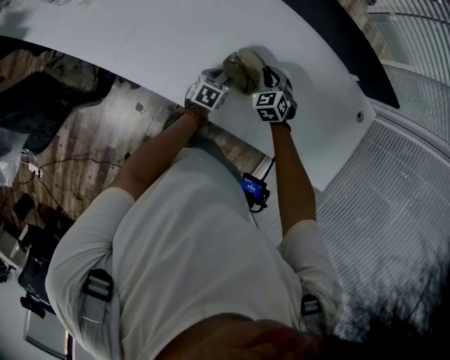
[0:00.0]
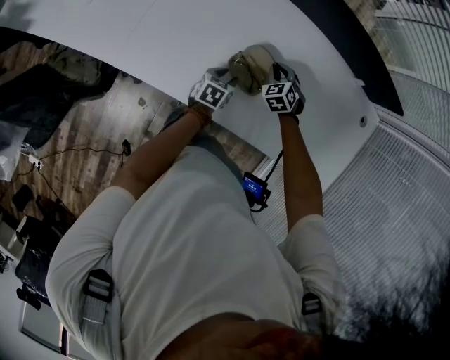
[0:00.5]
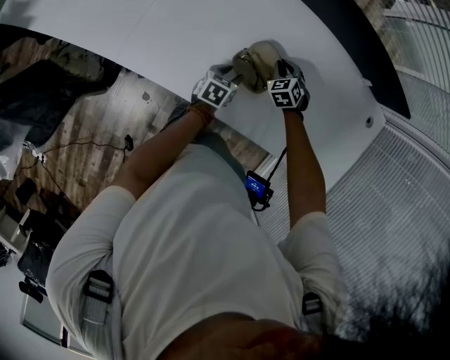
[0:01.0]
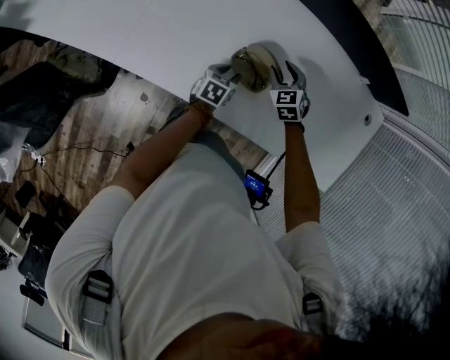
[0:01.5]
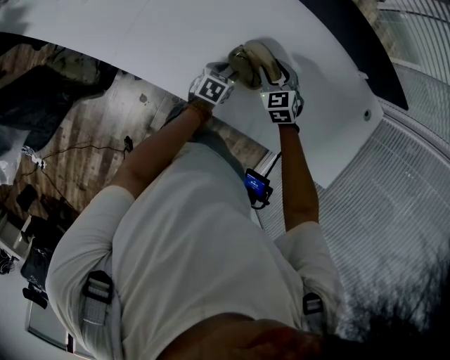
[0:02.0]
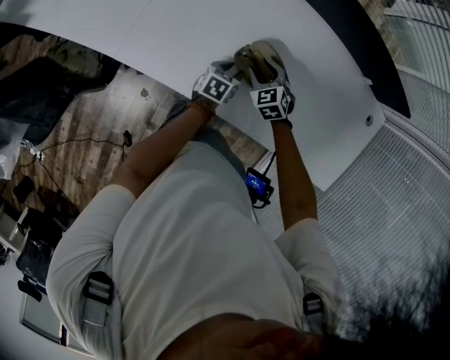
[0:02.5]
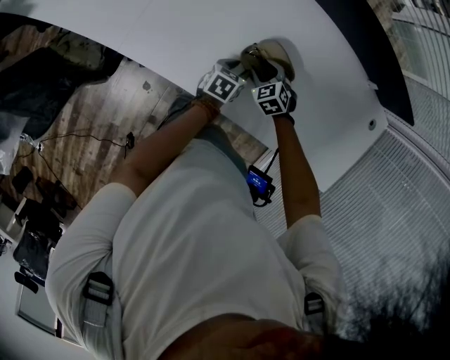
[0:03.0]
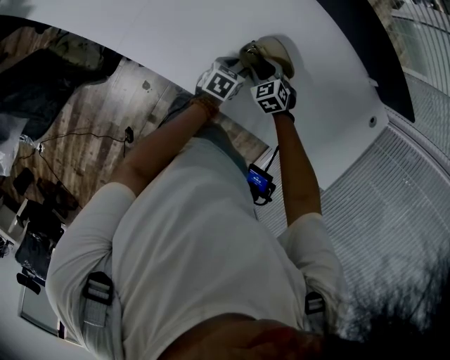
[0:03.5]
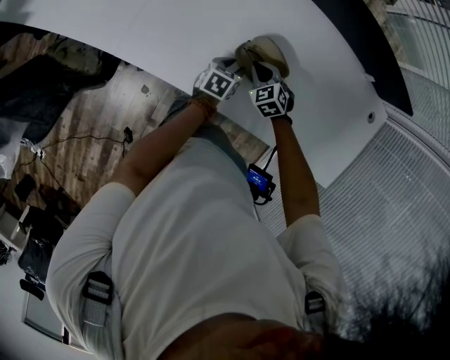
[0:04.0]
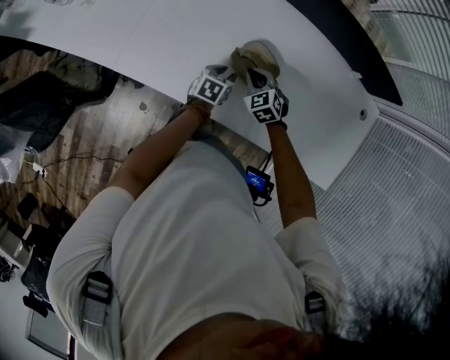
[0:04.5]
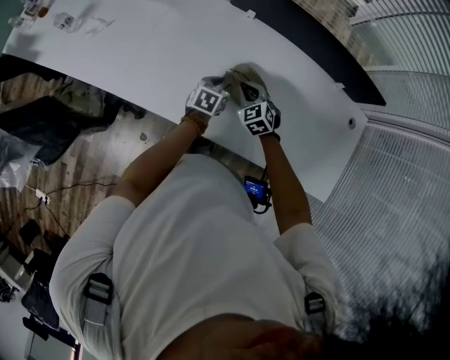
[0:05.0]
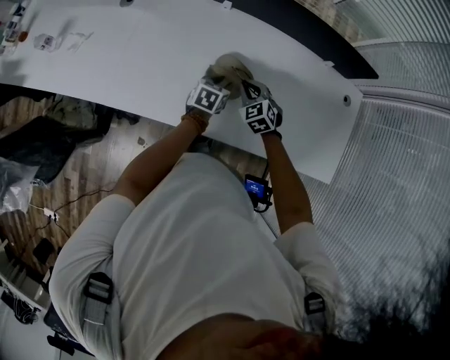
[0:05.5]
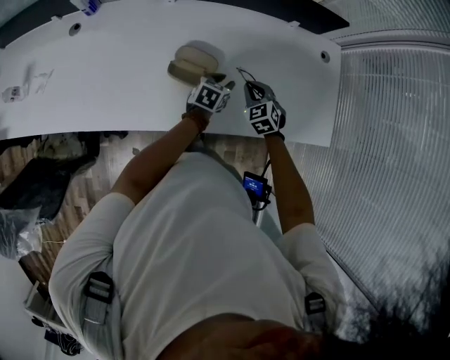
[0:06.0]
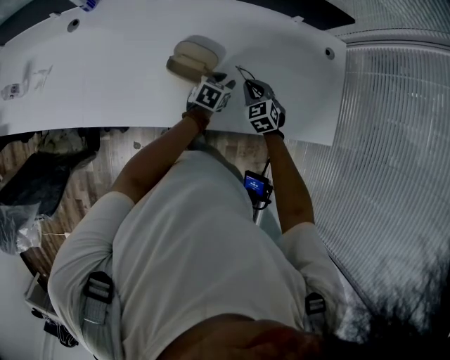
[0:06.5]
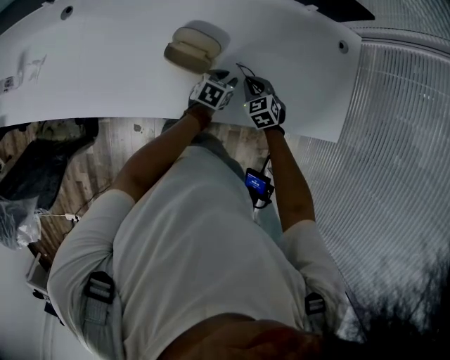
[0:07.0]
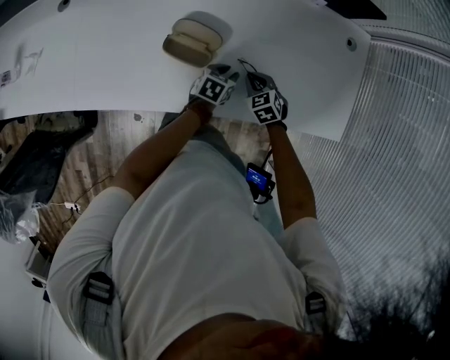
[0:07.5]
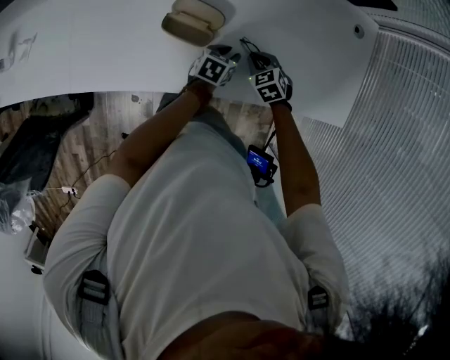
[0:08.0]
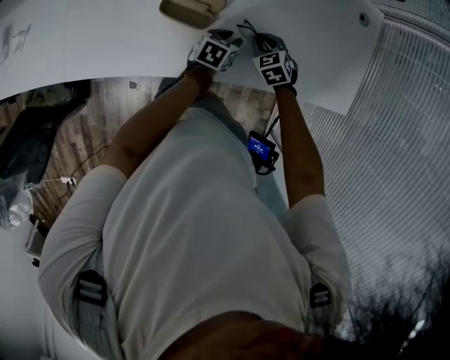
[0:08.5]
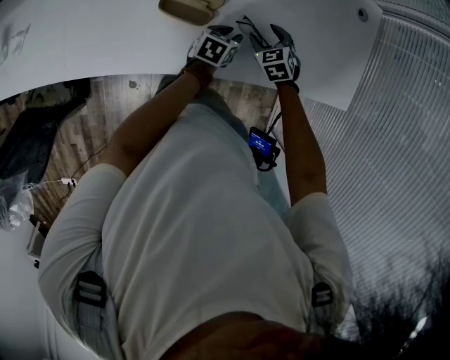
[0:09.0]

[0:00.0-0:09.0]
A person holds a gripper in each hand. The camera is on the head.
0:00.0 to 0:02.0: The right gripper opens up.
0:02.0 to 0:04.5: The right gripper travels downward and back again, approximately 10 cm each way, and closes up.
0:04.5 to 0:07.0: The right gripper changes place by some 20 cm, and changes its angle by about 30 degrees. The left gripper shifts by about 20 cm, and rotates approximately 20 degrees.
0:07.0 to 0:09.0: The right gripper opens its fingers.

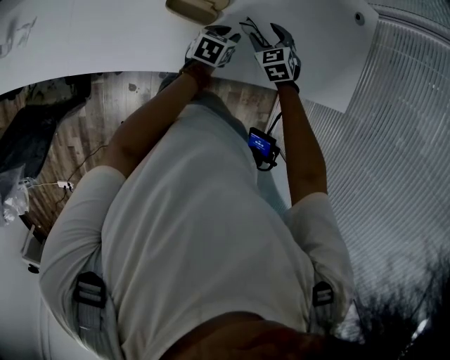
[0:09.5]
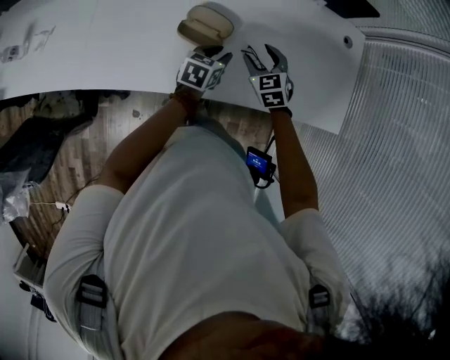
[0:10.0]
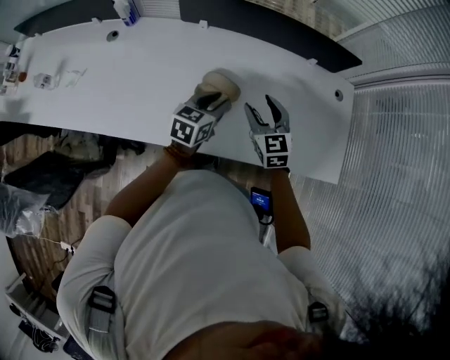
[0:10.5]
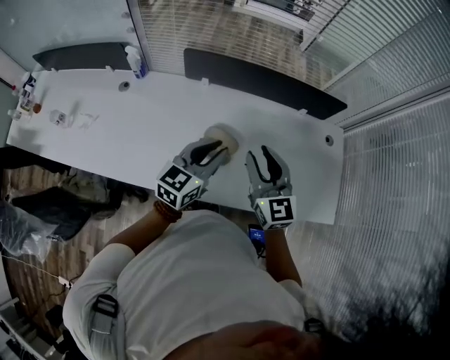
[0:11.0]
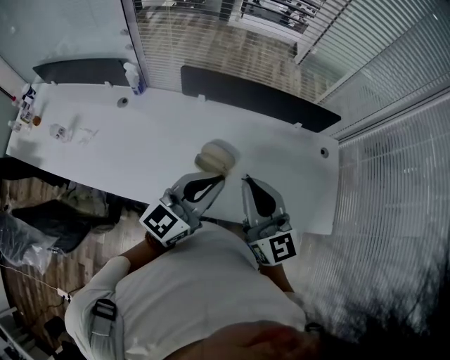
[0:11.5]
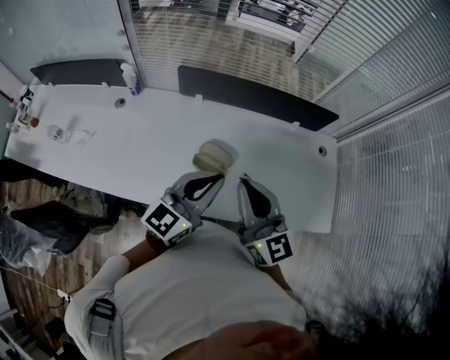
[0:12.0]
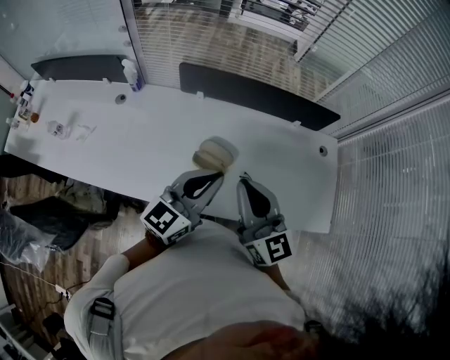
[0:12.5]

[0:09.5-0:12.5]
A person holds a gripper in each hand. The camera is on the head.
0:09.5 to 0:11.0: Both grippers travel together upward, approximately 35 cm. The left gripper points its fingers roughly 30 degrees further upward; the right gripper tips its fingers upward by some 50 degrees, and closes its fingers.
0:11.0 to 0:12.5: The right gripper heads upward and backward, covering about 10 cm, and closes up. The left gripper travels upward by about 10 cm.

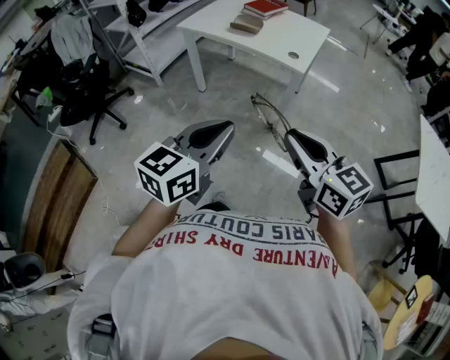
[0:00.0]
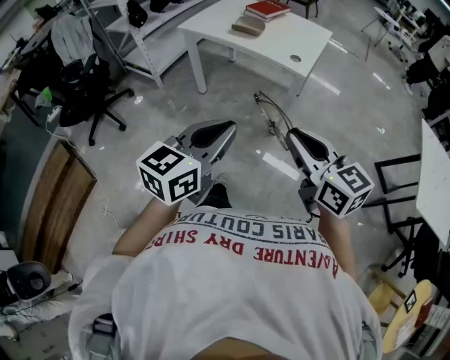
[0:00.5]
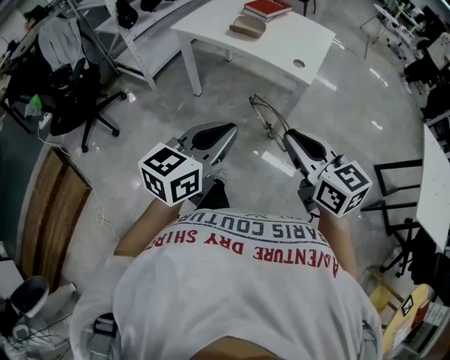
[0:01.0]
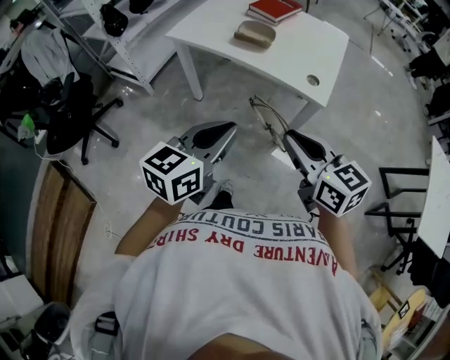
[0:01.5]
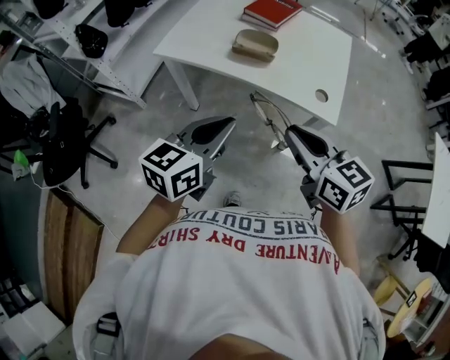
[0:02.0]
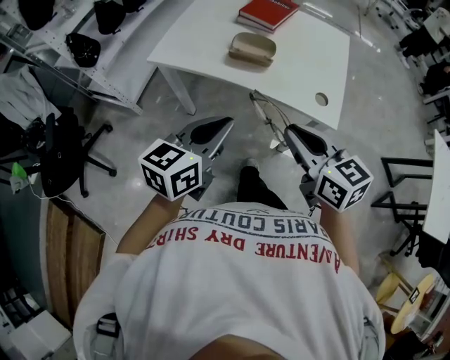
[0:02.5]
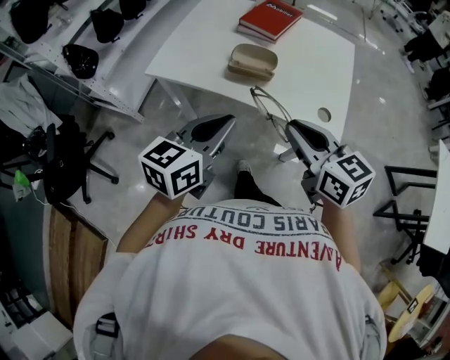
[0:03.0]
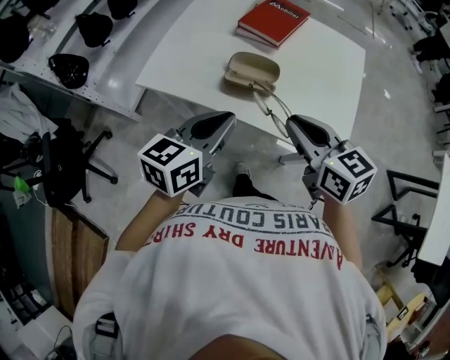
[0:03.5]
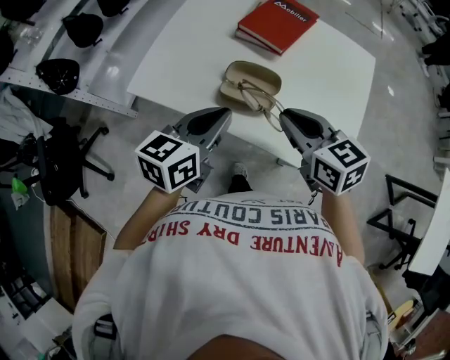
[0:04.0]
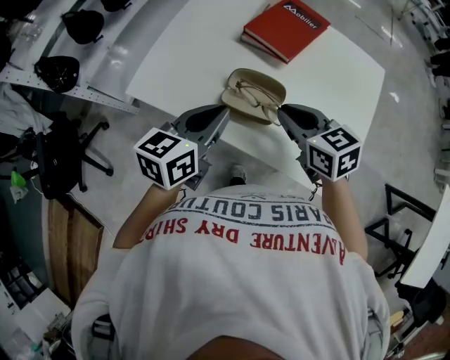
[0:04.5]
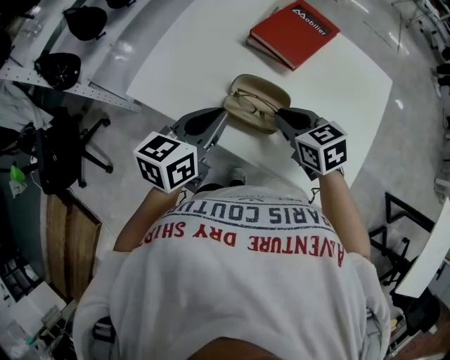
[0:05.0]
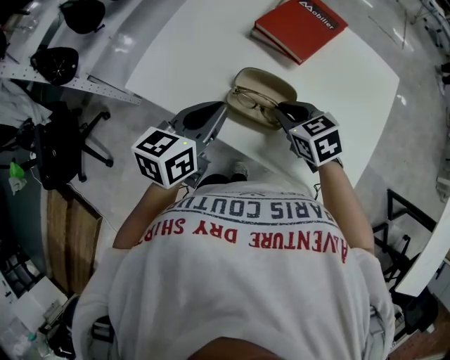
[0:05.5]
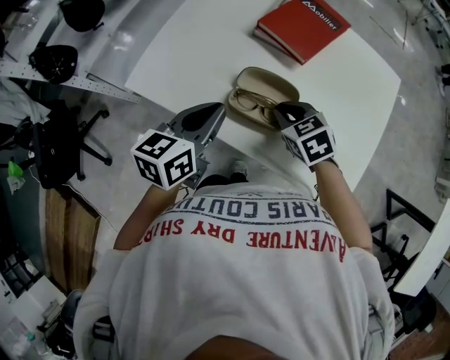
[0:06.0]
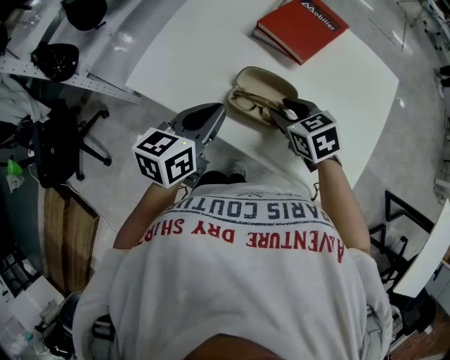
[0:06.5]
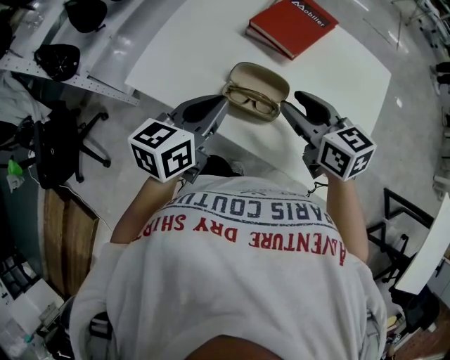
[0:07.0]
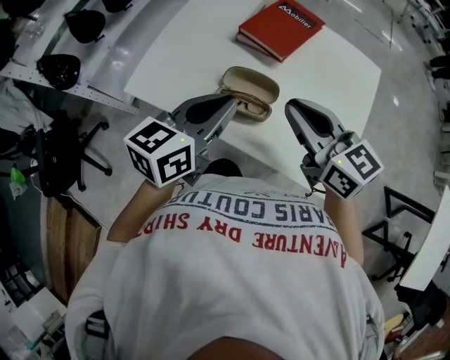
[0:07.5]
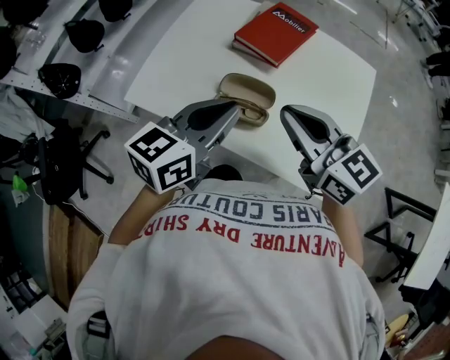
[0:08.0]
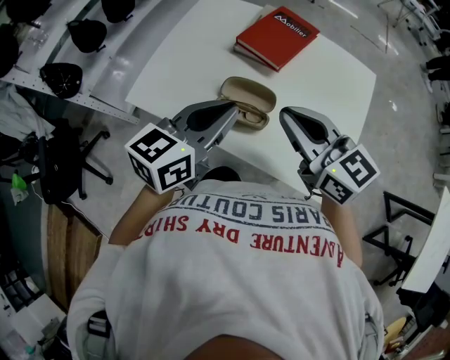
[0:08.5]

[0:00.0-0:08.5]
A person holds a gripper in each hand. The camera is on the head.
0:00.0 to 0:02.0: Both grippers travel together forward, approximately 40 cm.
0:02.0 to 0:04.0: The two grippers go approximately 30 cm forward.
0:04.0 to 0:06.5: The left gripper shifts some 10 cm downward and forward. The right gripper moves downward and forward, some 15 cm, rotates some 20 degrees, and opens up.
0:06.5 to 0:08.5: The left gripper shifts approximately 15 cm upward and to the right. Meanwhile the right gripper shifts approximately 20 cm upward, tilts its fingers roughly 40 degrees upward, and closes its fingers.

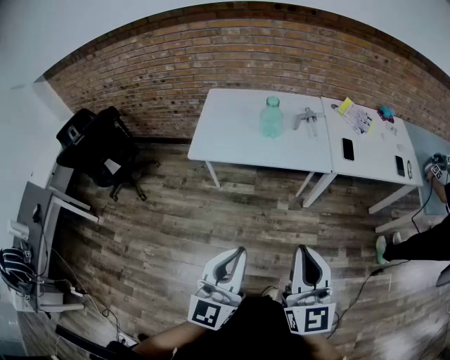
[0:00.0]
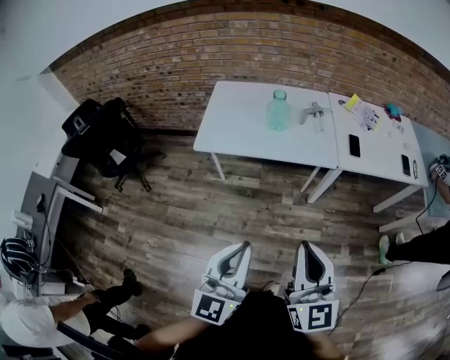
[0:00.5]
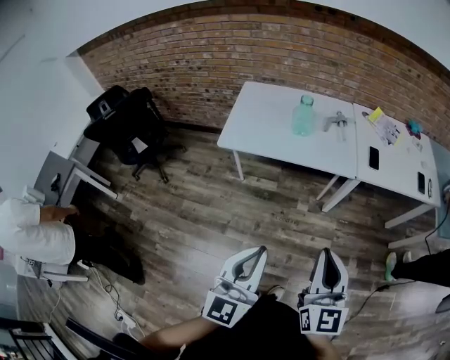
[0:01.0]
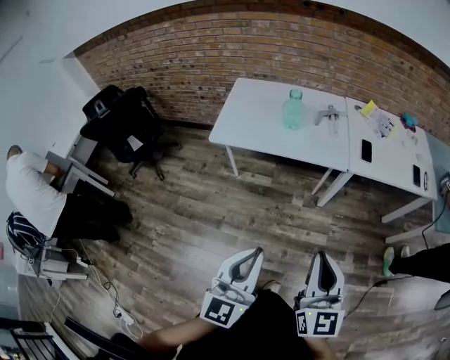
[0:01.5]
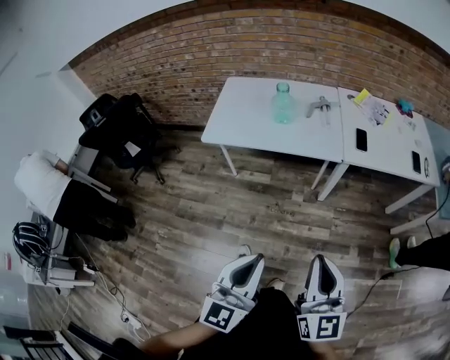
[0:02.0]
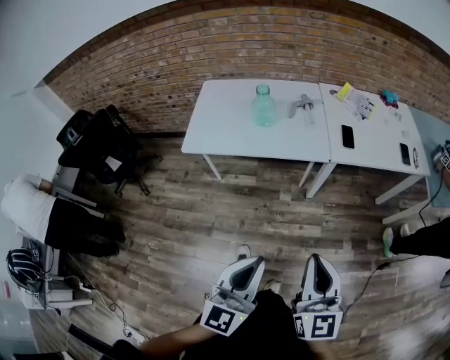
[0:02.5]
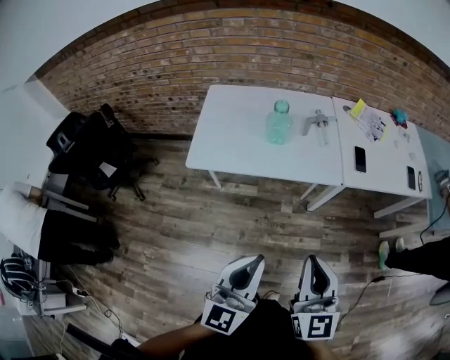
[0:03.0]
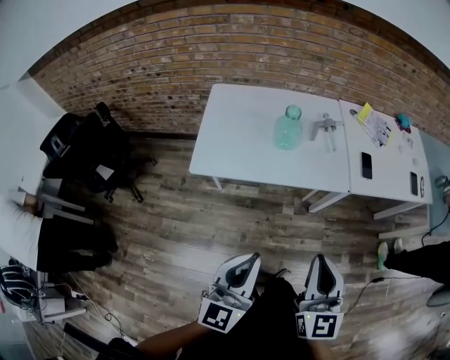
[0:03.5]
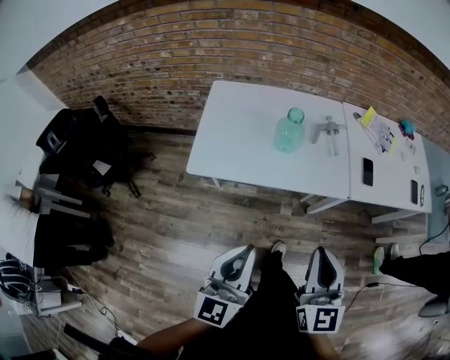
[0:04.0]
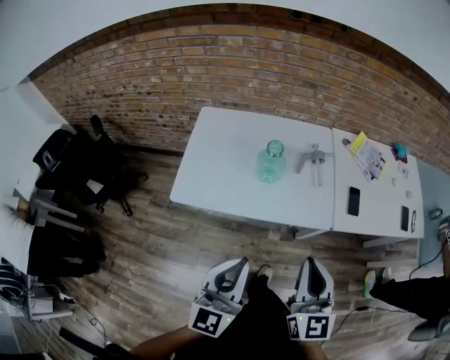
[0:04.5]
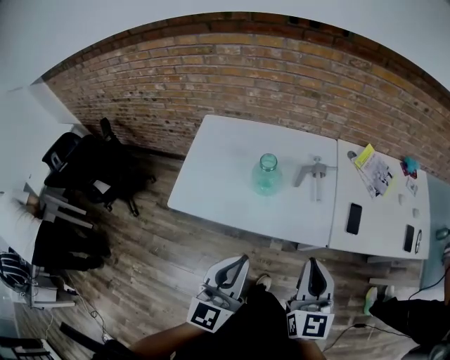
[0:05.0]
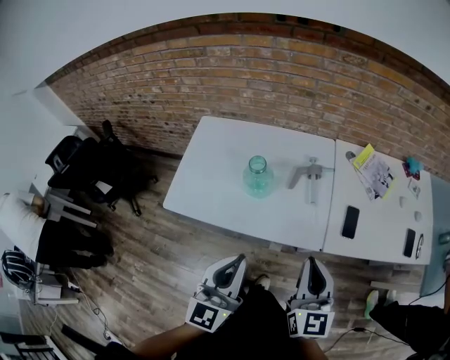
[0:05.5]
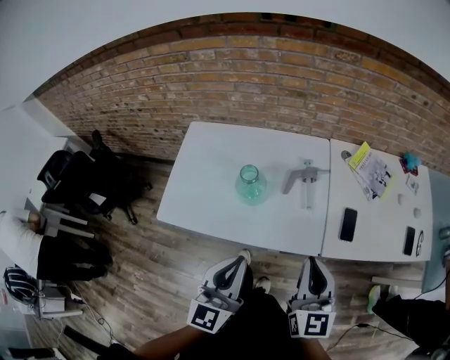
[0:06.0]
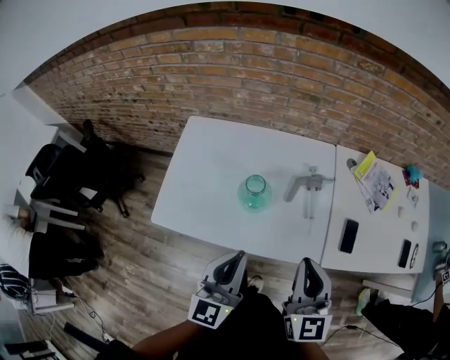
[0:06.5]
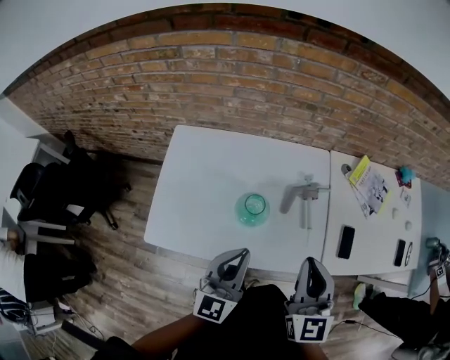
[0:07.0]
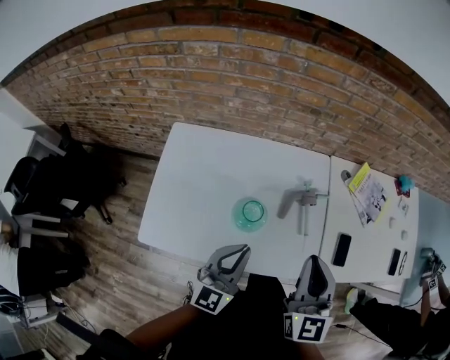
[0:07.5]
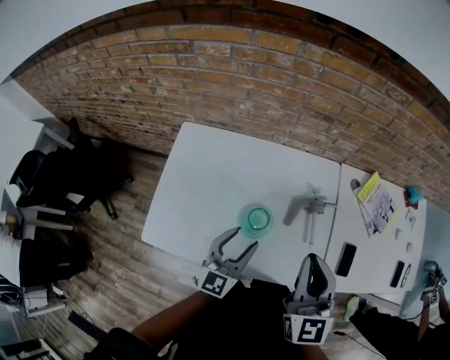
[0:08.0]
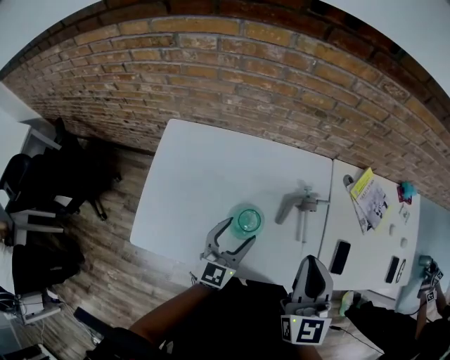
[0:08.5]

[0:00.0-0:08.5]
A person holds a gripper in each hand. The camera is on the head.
0:00.0 to 0:02.0: Both grippers travel together to the right and backward, some 10 cm.
0:02.0 to 0:04.0: Both grippers travel together forward and to the left, about 30 cm.
0:04.0 to 0:06.5: The right gripper goes roughly 30 cm forward, while the left gripper shifts approximately 30 cm forward and to the right.
0:06.5 to 0:08.5: The right gripper is displaced forward by some 15 cm, while the left gripper heads forward and downward, covering about 25 cm, and opens its fingers.
